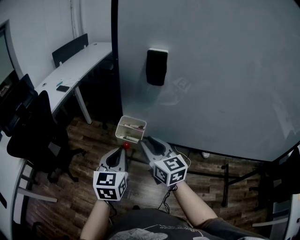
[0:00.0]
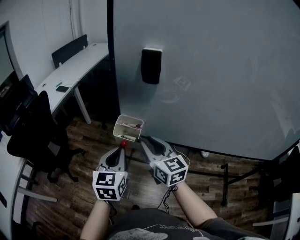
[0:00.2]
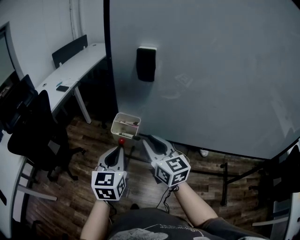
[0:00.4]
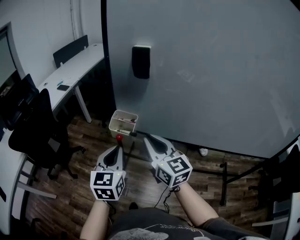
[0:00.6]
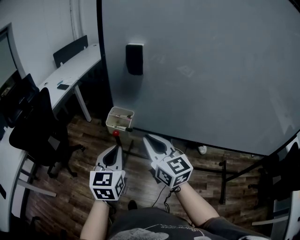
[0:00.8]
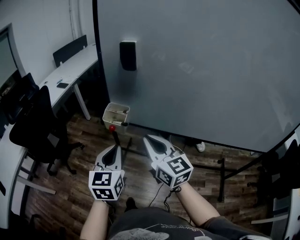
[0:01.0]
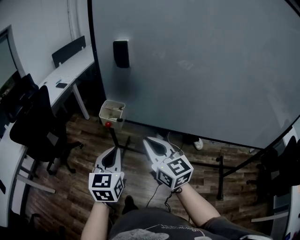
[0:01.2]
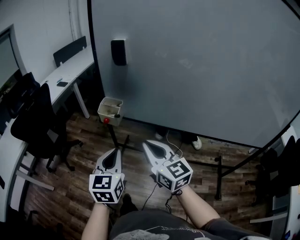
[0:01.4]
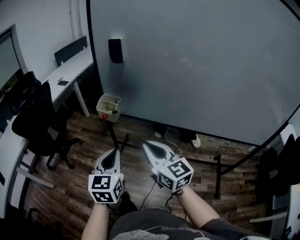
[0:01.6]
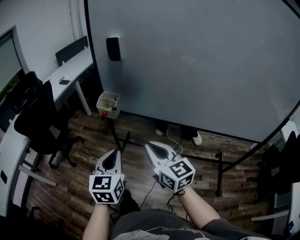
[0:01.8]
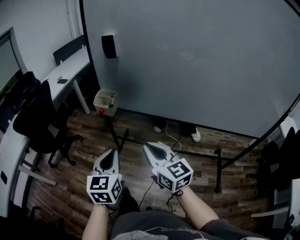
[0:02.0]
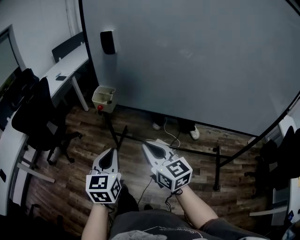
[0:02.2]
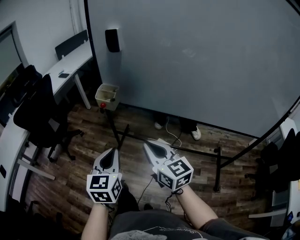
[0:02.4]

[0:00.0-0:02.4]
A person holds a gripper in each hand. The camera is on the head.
0.0 to 1.2 s: The grippers both shift backward and to the right by approximately 15 cm. The right gripper closes up.
1.2 to 2.4 s: Both grippers travel together backward, roughly 10 cm.

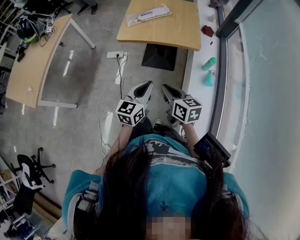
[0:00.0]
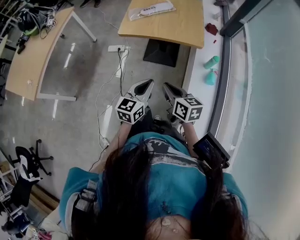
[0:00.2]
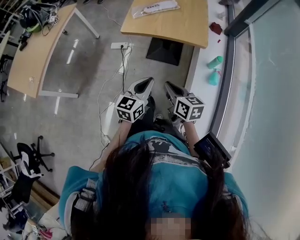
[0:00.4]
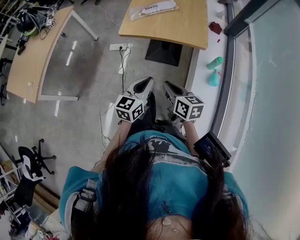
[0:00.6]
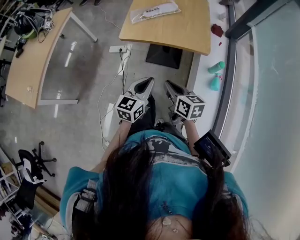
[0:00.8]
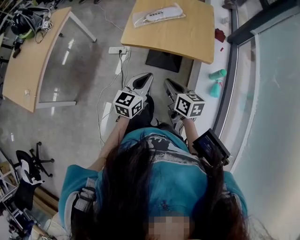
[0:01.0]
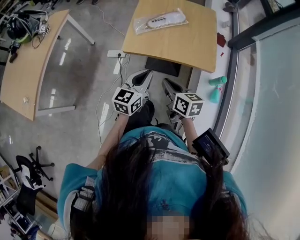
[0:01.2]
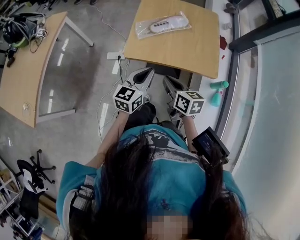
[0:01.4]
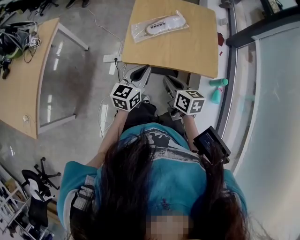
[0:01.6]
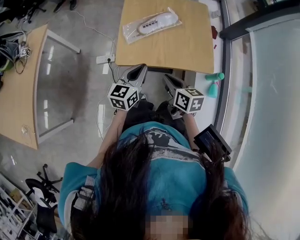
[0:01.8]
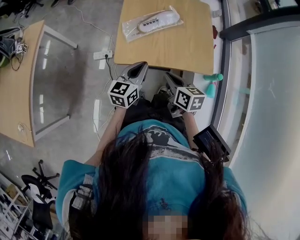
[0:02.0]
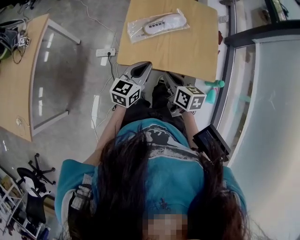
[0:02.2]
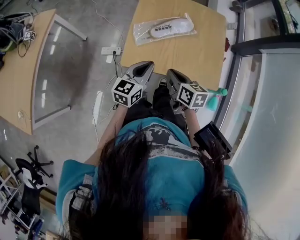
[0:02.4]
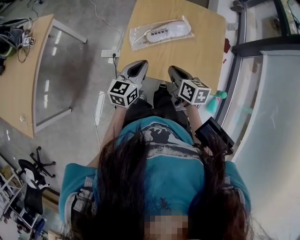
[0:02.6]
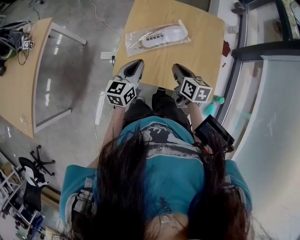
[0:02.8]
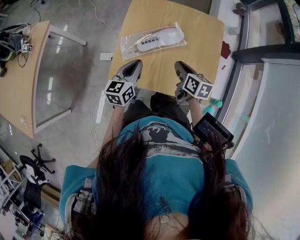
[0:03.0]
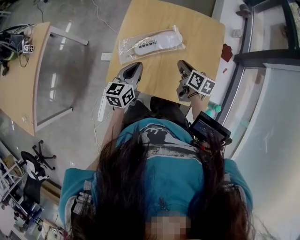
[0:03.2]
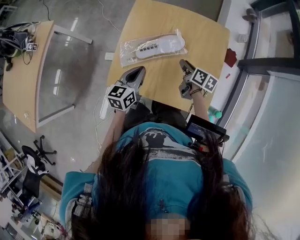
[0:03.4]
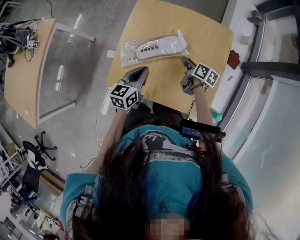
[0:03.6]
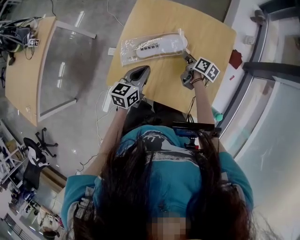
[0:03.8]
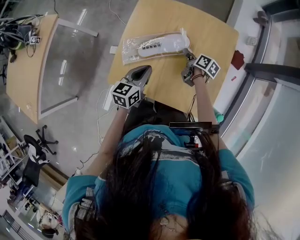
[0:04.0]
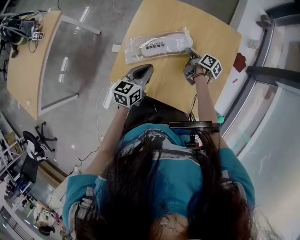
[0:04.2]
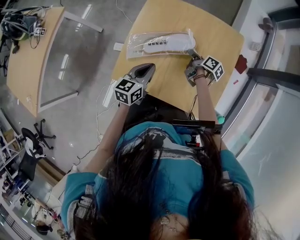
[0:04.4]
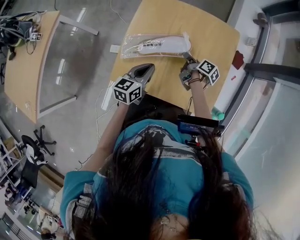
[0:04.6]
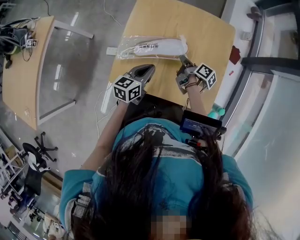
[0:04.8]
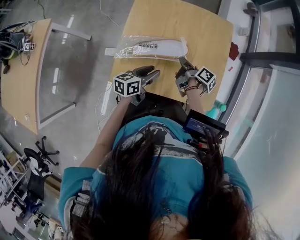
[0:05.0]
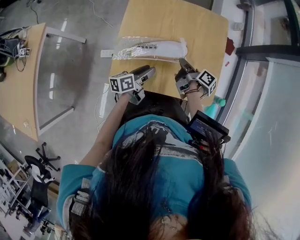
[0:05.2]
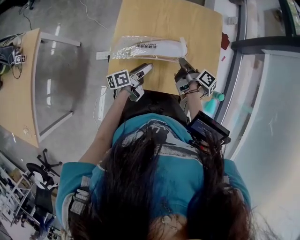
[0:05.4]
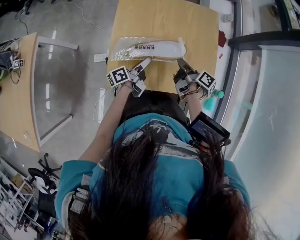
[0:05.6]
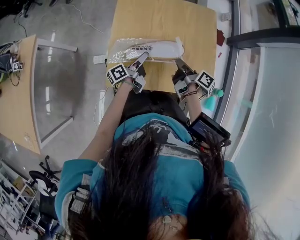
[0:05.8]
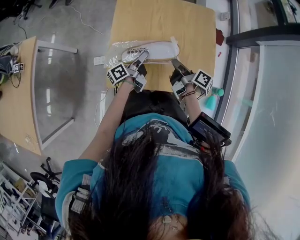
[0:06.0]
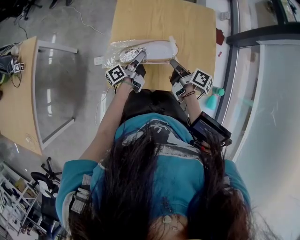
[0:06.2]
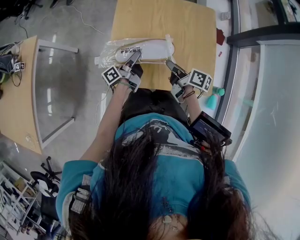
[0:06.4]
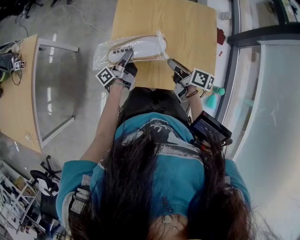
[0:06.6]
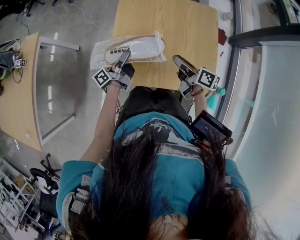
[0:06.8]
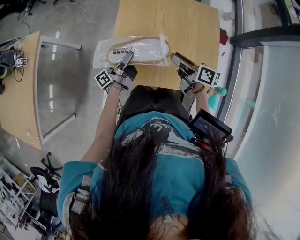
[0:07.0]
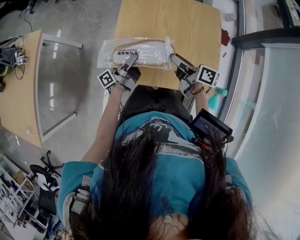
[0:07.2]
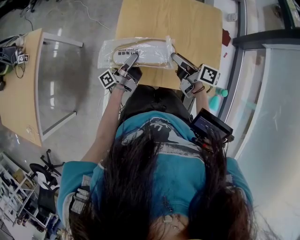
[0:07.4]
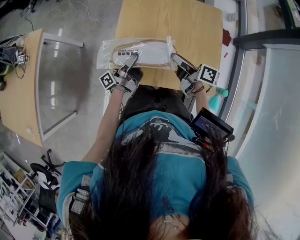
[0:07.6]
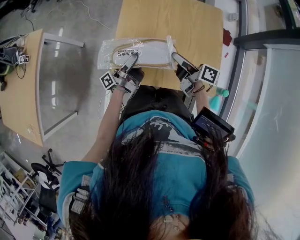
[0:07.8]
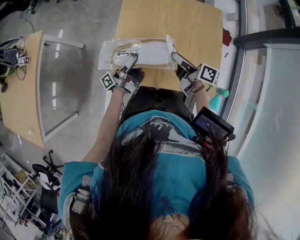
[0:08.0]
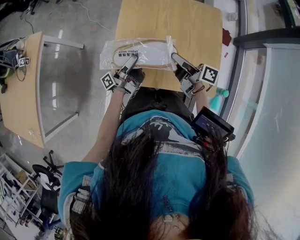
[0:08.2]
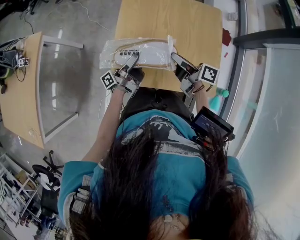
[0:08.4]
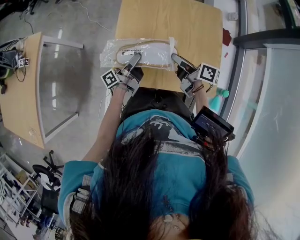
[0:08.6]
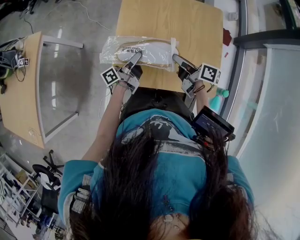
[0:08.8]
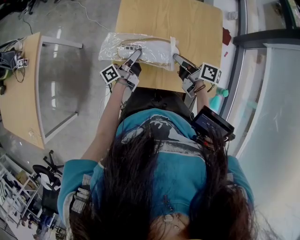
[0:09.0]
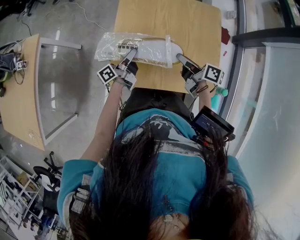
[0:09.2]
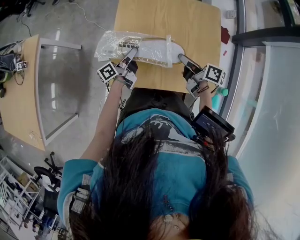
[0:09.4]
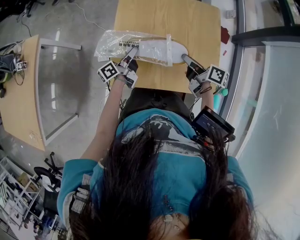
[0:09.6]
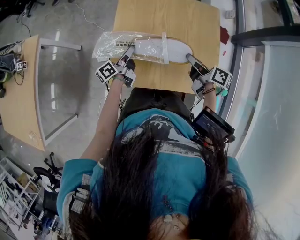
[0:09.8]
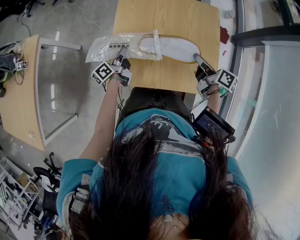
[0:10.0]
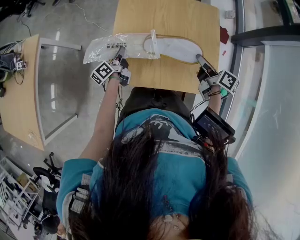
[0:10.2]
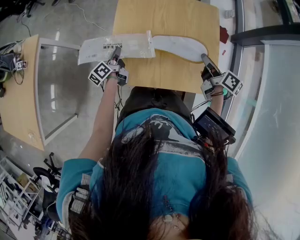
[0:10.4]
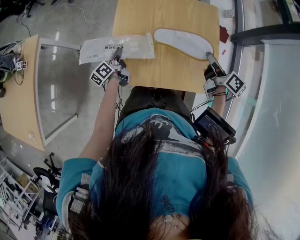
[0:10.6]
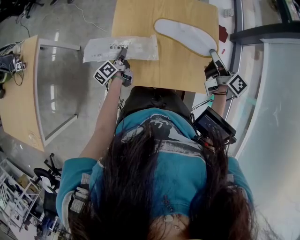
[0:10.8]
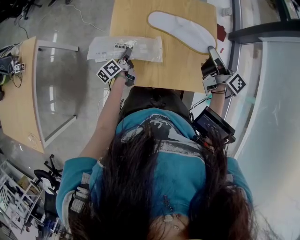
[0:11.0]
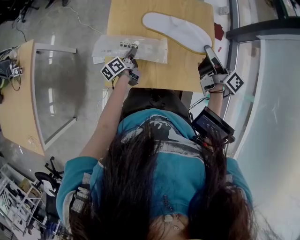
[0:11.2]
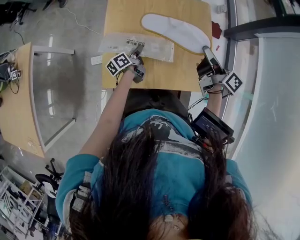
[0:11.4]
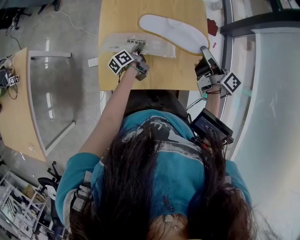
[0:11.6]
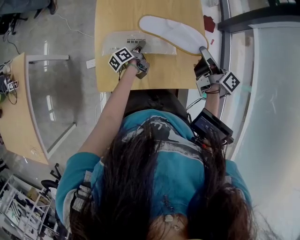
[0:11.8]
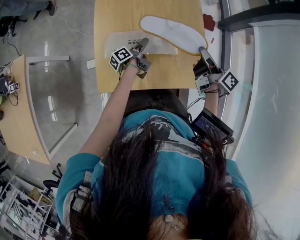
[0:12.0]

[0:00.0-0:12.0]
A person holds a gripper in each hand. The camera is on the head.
0.0 to 1.6 s: Both grippers travel together forward, roughly 35 cm.
1.6 to 3.0 s: The right gripper travels forward and to the right by approximately 30 cm; the left gripper is displaced forward by approximately 20 cm.
3.0 to 4.4 s: The right gripper is displaced forward and downward by roughly 20 cm, swivels some 40 degrees, and opens, then closes once more. The left gripper heads to the right, covering some 5 cm.
4.4 to 6.0 s: The right gripper moves backward and upward, roughly 15 cm; the left gripper heads downward, covering about 5 cm, twists about 60 degrees counterclockwise, seen from behind, and opens its fingers.
6.0 to 7.6 s: The right gripper changes place by about 5 cm, rotates about 30 degrees, and opens up; the left gripper shifts approximately 10 cm to the left and upward, turns by about 20 degrees, and closes up.
7.6 to 9.0 s: The left gripper turns by about 20 degrees.
9.0 to 10.4 s: The left gripper heads to the left, covering approximately 10 cm, and rotates approximately 30 degrees. The right gripper travels to the right by about 15 cm.
10.4 to 12.0 s: The left gripper goes roughly 20 cm to the right, rotates approximately 30 degrees, and opens up; the right gripper turns by about 20 degrees.

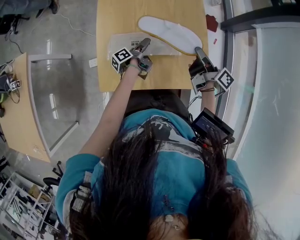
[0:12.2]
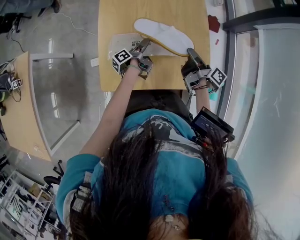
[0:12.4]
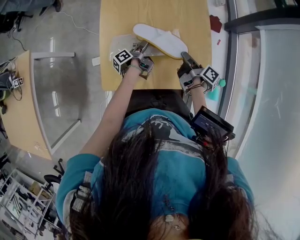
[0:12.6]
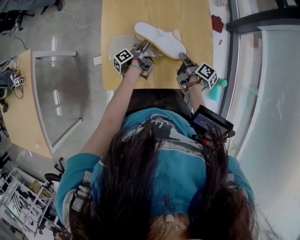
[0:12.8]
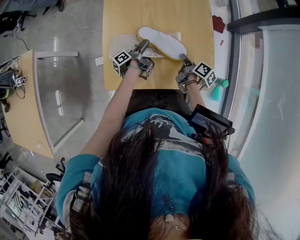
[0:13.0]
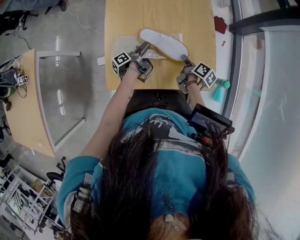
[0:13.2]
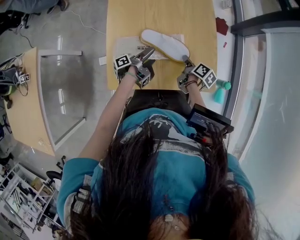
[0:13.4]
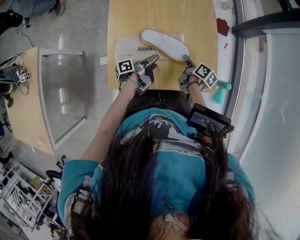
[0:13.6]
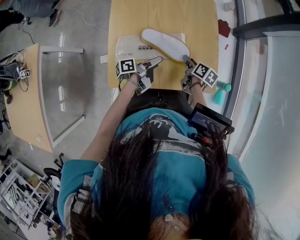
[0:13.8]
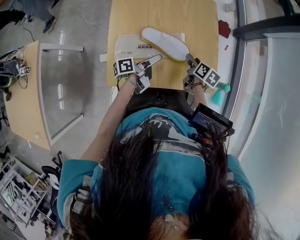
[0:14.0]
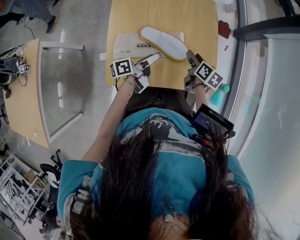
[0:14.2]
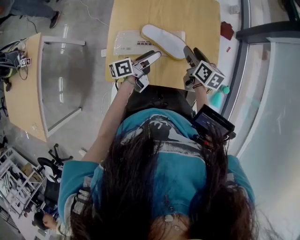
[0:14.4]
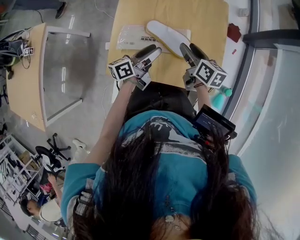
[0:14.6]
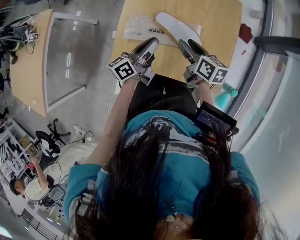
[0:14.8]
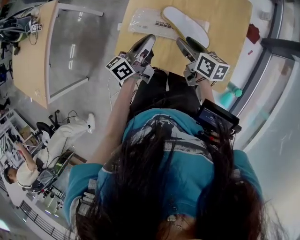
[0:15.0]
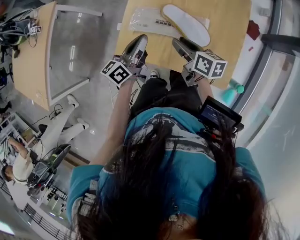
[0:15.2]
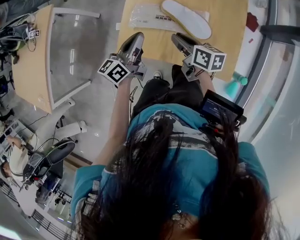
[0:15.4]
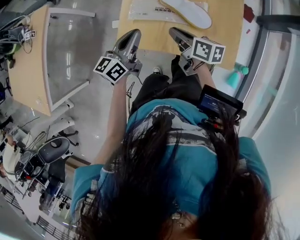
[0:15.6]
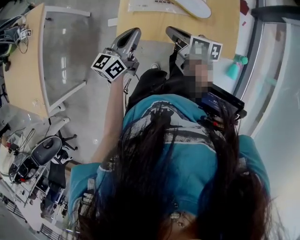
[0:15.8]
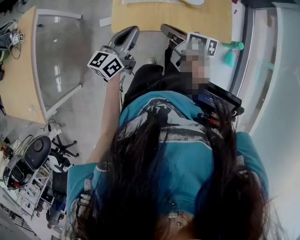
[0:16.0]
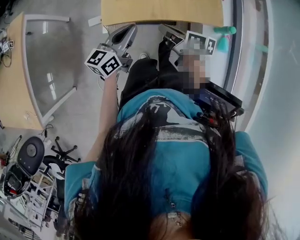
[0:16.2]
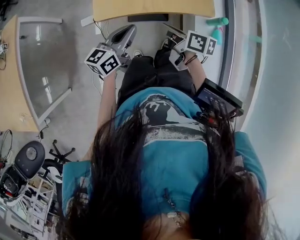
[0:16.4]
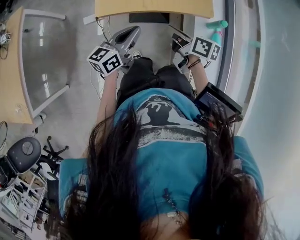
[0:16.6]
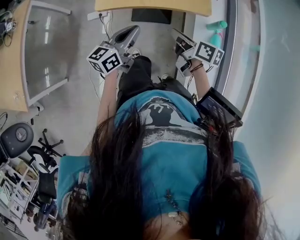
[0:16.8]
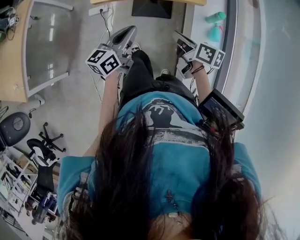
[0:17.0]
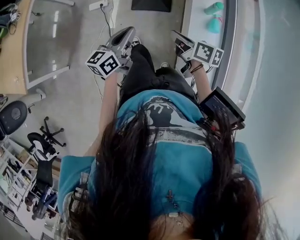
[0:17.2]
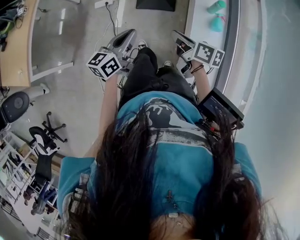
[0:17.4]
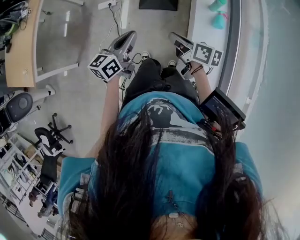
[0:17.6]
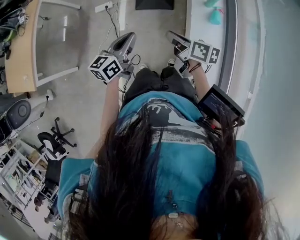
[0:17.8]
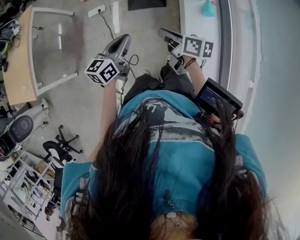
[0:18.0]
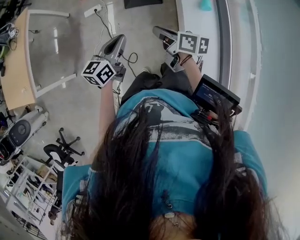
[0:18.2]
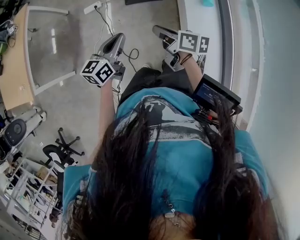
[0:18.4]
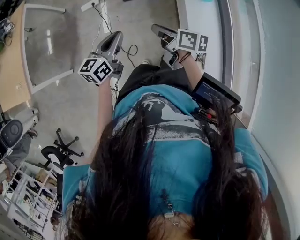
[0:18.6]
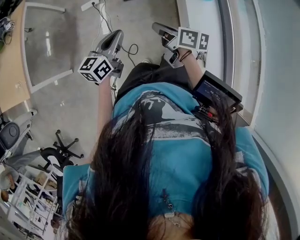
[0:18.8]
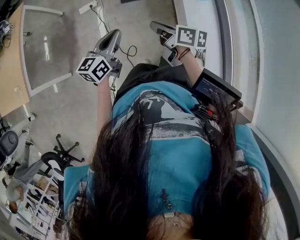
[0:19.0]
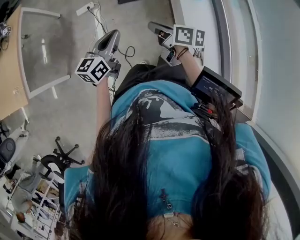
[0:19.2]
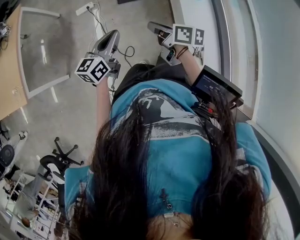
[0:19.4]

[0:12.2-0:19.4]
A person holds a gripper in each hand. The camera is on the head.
12.2 to 13.6 s: The left gripper is displaced backward by roughly 10 cm, while the right gripper is displaced downward by roughly 15 cm, and changes its angle by roughly 30 degrees.
13.6 to 15.0 s: The right gripper moves approximately 15 cm, changes its angle by some 50 degrees, and opens. The left gripper shifts some 15 cm upward, rotates around the line of its fingers by roughly 50 degrees, clockwise from behind, and closes.
15.0 to 16.6 s: Both grippers move backward, roughly 30 cm. The left gripper turns by approximately 30 degrees; the right gripper closes its fingers.
16.6 to 18.0 s: Both grippers move backward, some 30 cm.
18.0 to 19.4 s: The two grippers go some 15 cm to the left and backward.

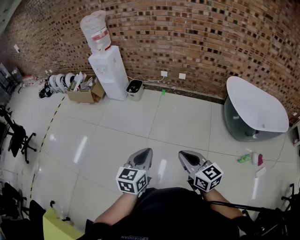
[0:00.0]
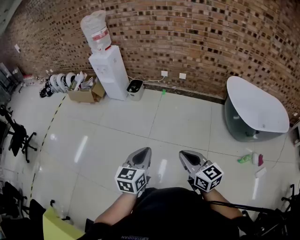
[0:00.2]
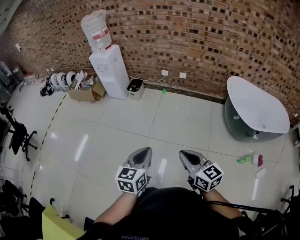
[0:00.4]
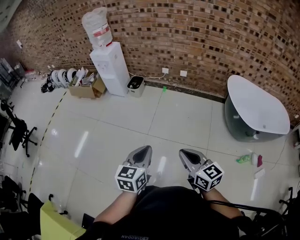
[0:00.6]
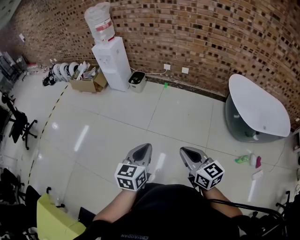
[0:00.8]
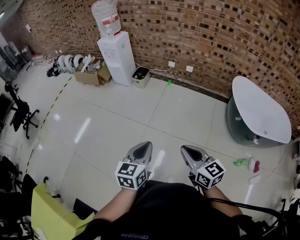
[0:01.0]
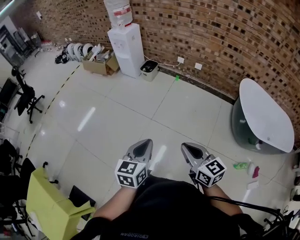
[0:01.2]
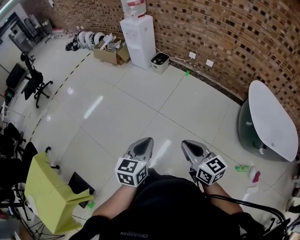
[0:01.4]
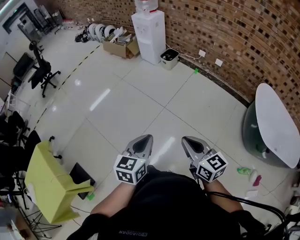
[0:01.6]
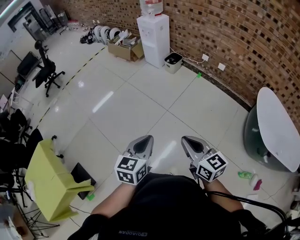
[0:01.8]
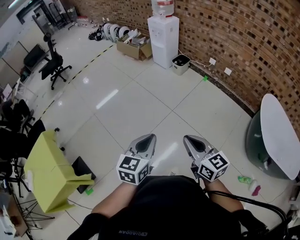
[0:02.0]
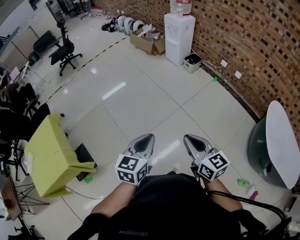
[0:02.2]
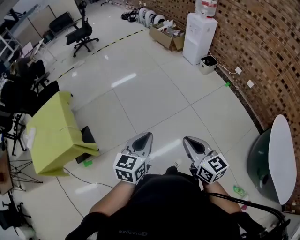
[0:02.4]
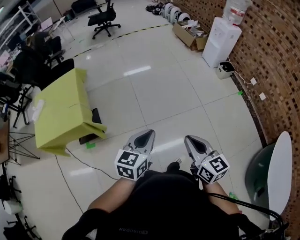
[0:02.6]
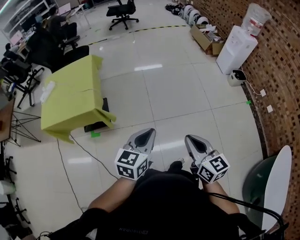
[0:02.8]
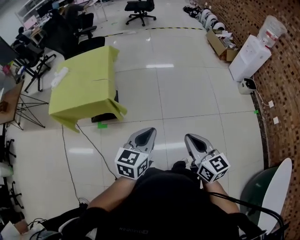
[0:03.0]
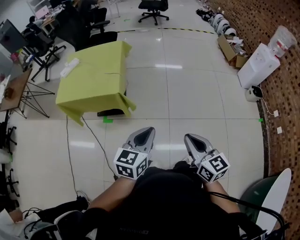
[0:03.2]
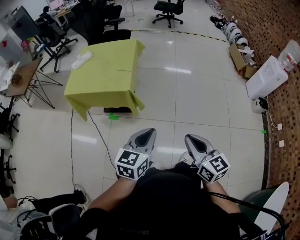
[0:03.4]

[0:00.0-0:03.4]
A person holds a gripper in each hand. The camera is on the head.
0.0 to 1.6 s: The right gripper is displaced backward by some 5 cm, and turns by about 20 degrees, while the left gripper goes roughly 10 cm backward, and swivels approximately 20 degrees.
1.6 to 3.4 s: The two grippers travel together, roughly 50 cm. The right gripper swivels some 50 degrees; the left gripper turns by roughly 50 degrees.
